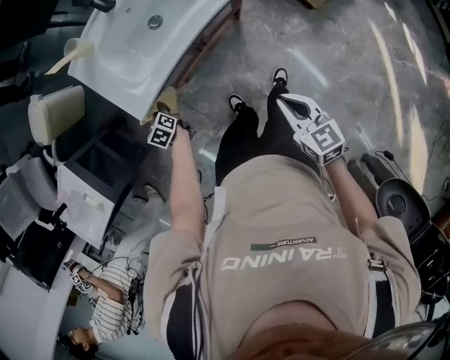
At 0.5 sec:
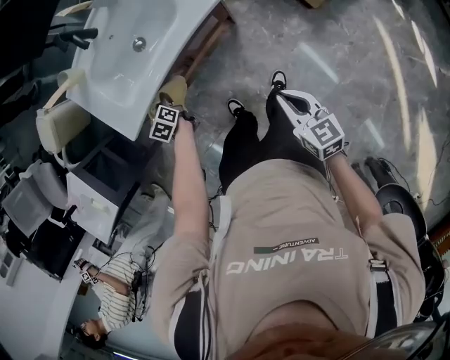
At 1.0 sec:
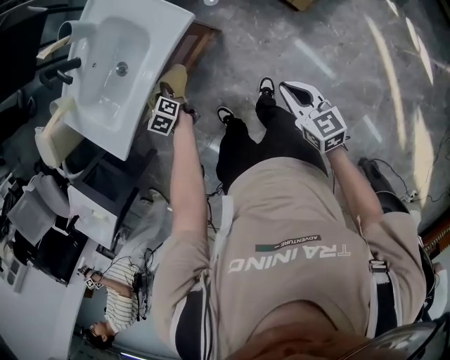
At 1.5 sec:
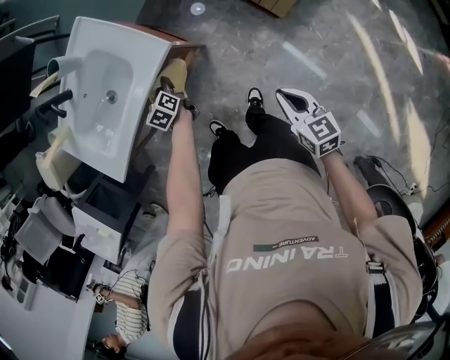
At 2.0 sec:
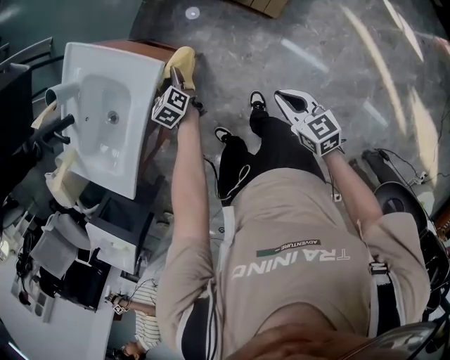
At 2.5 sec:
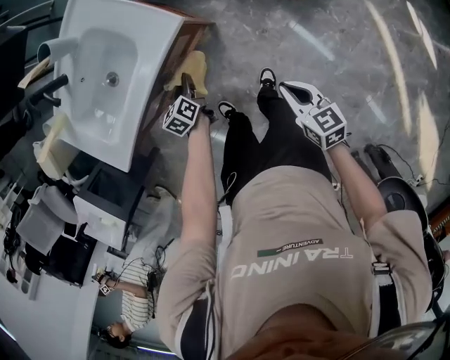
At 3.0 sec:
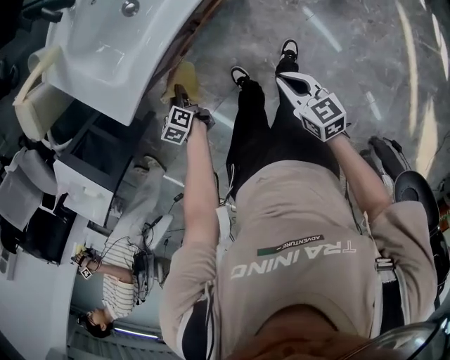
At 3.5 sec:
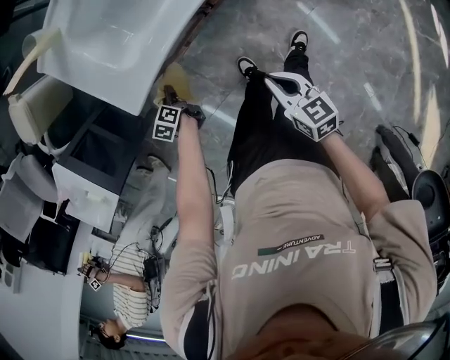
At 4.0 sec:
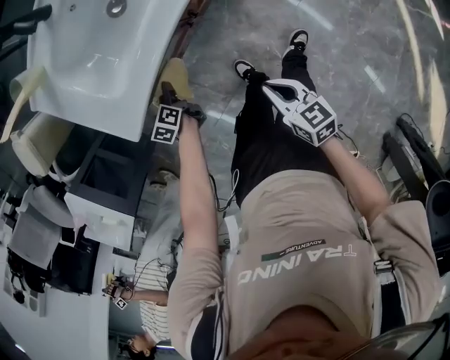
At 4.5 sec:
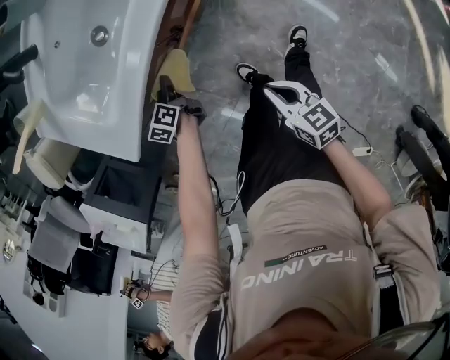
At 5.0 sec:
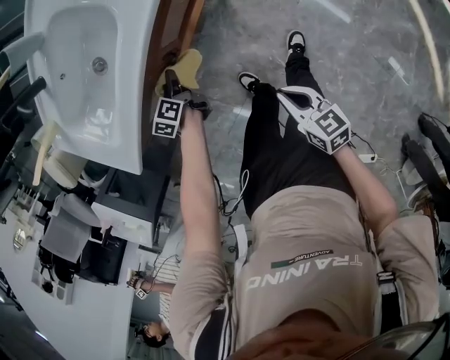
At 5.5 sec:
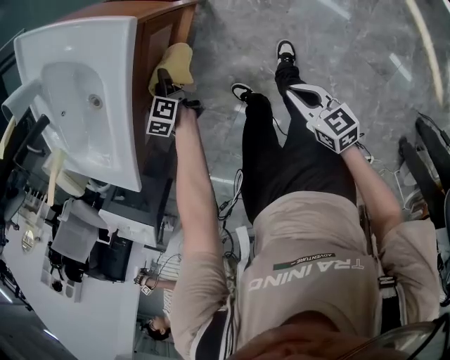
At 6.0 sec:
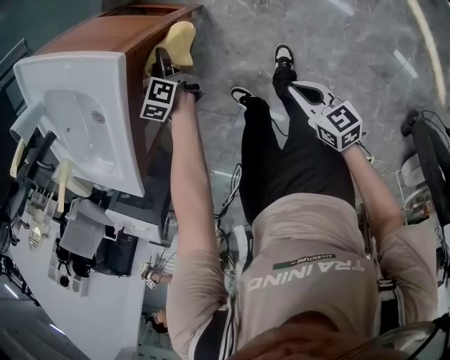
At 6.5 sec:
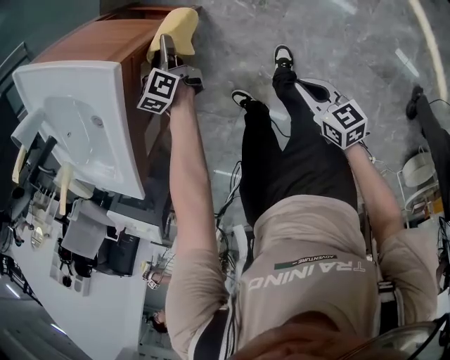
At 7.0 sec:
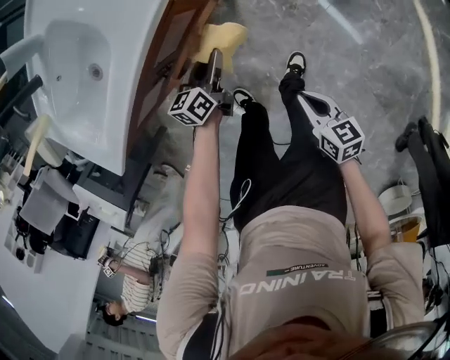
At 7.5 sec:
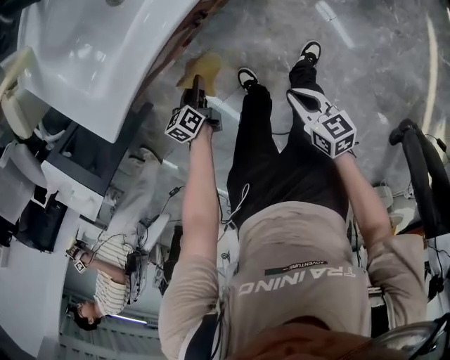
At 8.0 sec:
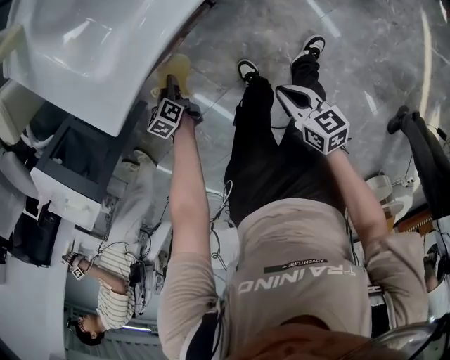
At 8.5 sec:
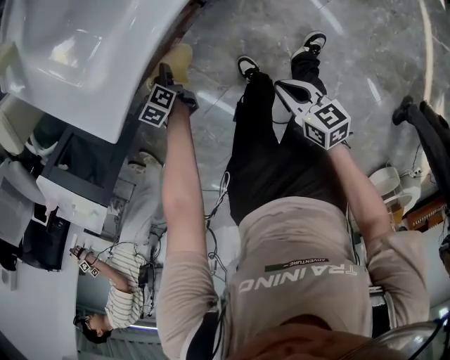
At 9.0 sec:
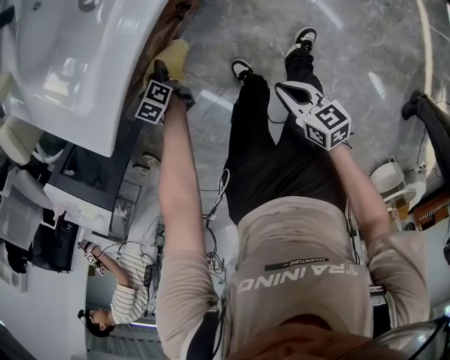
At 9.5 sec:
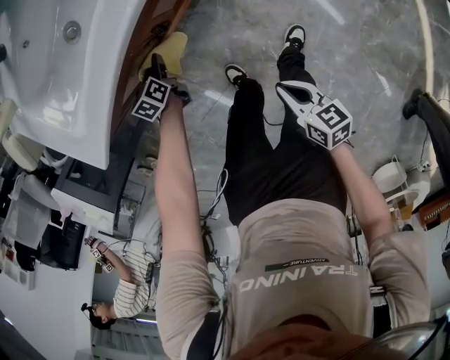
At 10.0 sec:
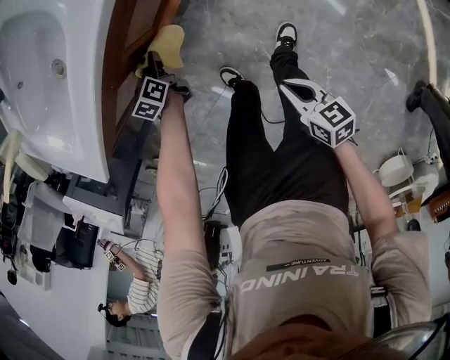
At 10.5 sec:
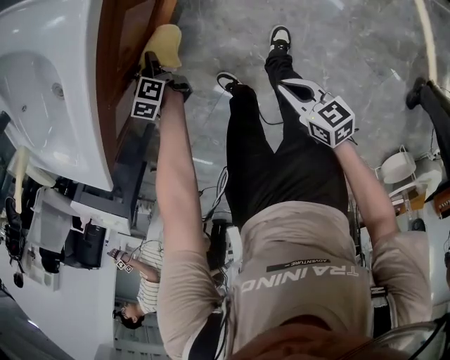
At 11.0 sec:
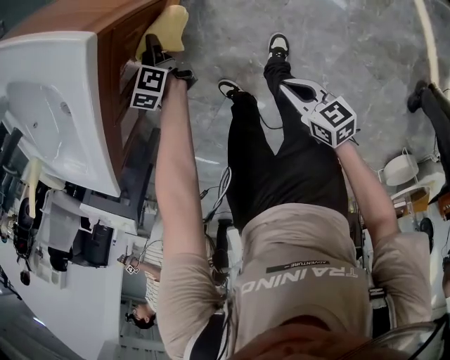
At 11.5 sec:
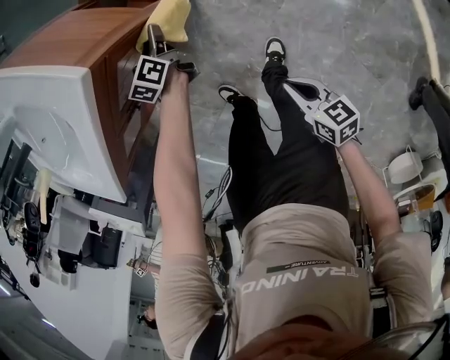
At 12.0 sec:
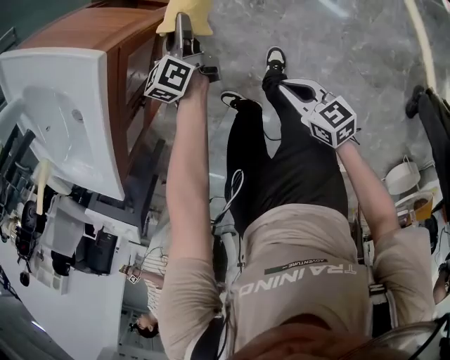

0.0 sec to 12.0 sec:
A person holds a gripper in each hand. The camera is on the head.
0.0 sec to 2.0 sec: The right gripper goes approximately 30 cm to the right; the left gripper goes roughly 50 cm to the right, and rotates roughly 30 degrees.
2.0 sec to 4.0 sec: Both grippers are carried to the left, some 50 cm. The left gripper swivels roughly 20 degrees.
4.0 sec to 6.0 sec: Both grippers move to the right, some 40 cm.
6.0 sec to 8.0 sec: The right gripper ends up roughly 35 cm from where it was. The left gripper shifts by some 50 cm.
8.0 sec to 10.0 sec: Both grippers travel together to the right, roughly 25 cm.
10.0 sec to 12.0 sec: The left gripper shifts some 35 cm to the right, and changes its angle by some 30 degrees; the right gripper shifts about 15 cm to the right.

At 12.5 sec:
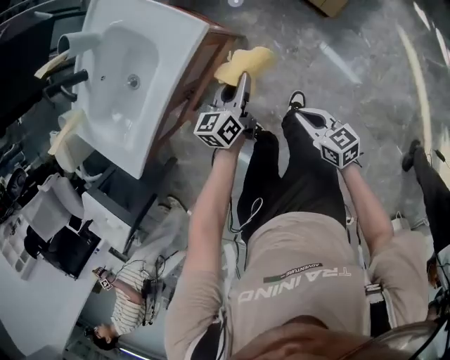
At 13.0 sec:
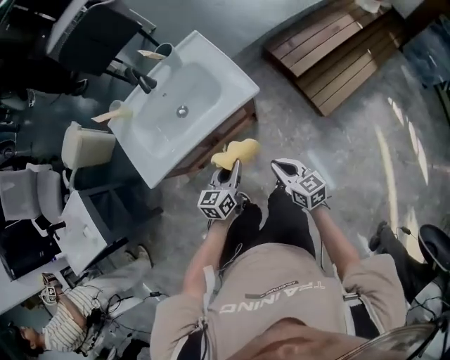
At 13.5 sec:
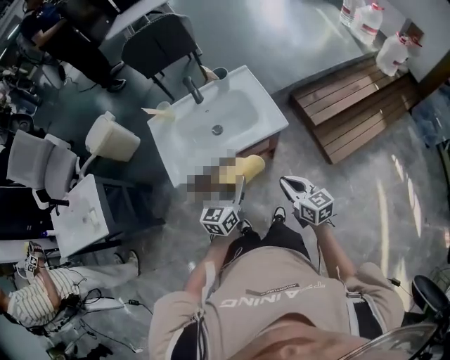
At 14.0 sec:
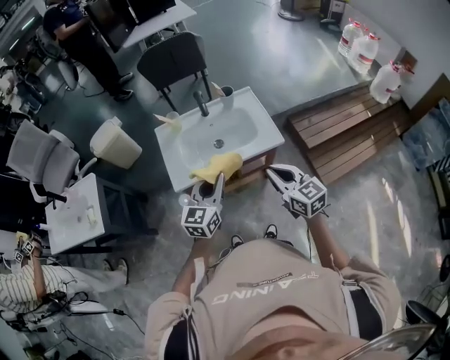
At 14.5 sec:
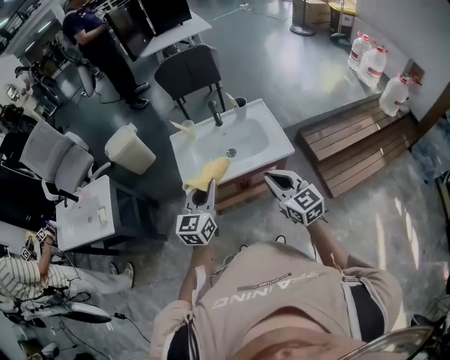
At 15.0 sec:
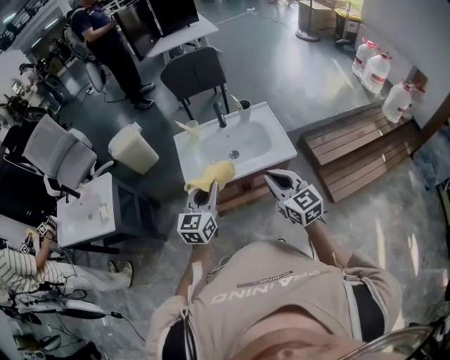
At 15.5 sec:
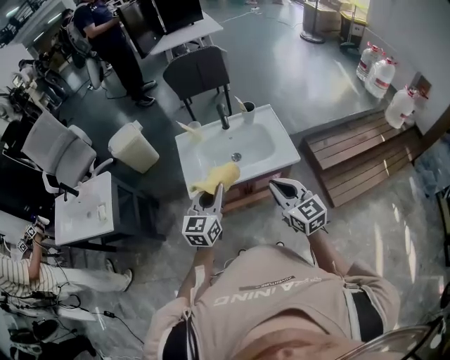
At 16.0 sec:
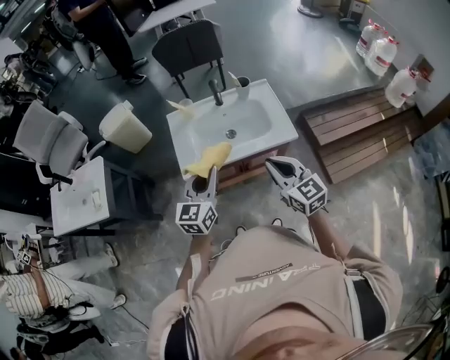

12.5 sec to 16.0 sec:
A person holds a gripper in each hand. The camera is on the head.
12.5 sec to 14.5 sec: Both grippers move upward and to the left, approximately 50 cm. The right gripper rotates around the line of its fingers by approximately 50 degrees, counterclockwise from behind; the left gripper changes its angle by roughly 50 degrees.
14.5 sec to 16.0 sec: There are only small adjustments of the grippers.

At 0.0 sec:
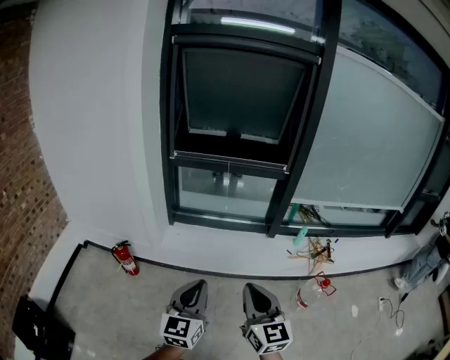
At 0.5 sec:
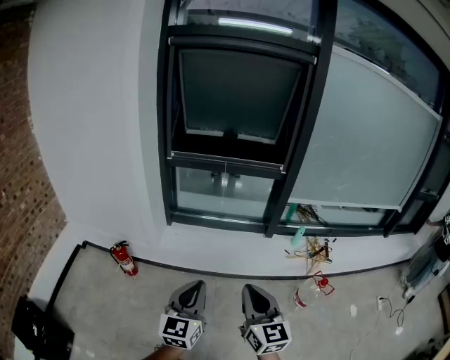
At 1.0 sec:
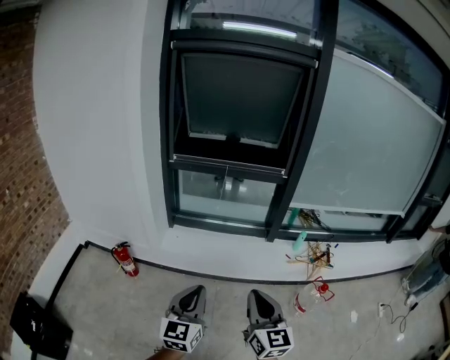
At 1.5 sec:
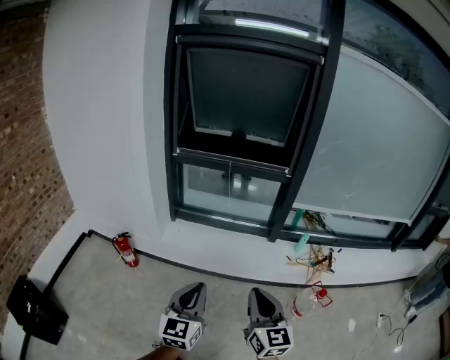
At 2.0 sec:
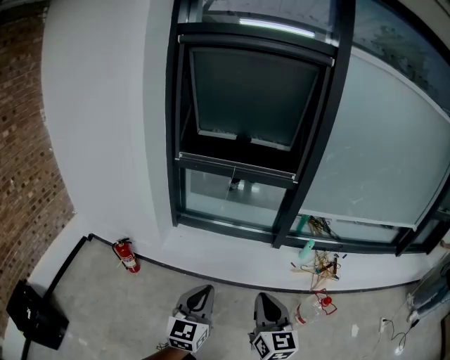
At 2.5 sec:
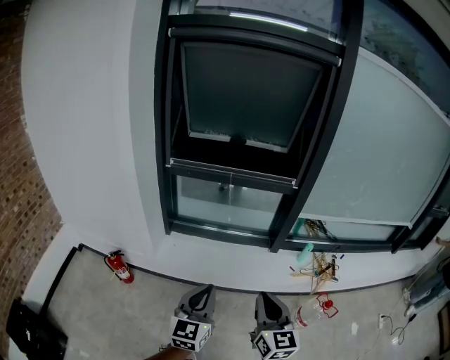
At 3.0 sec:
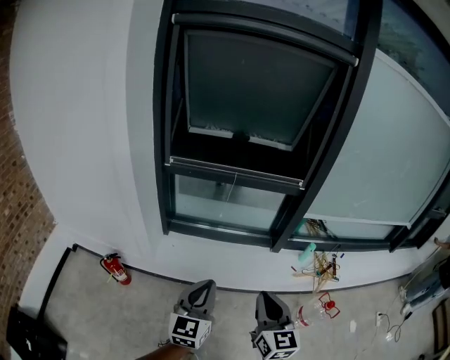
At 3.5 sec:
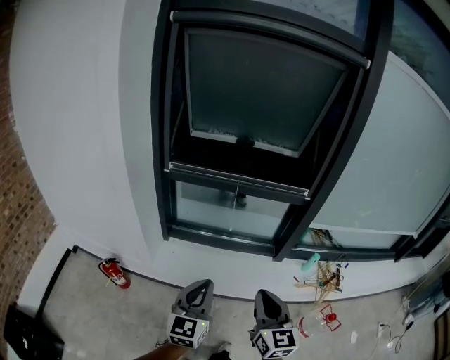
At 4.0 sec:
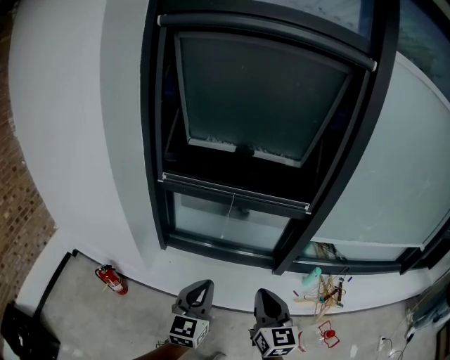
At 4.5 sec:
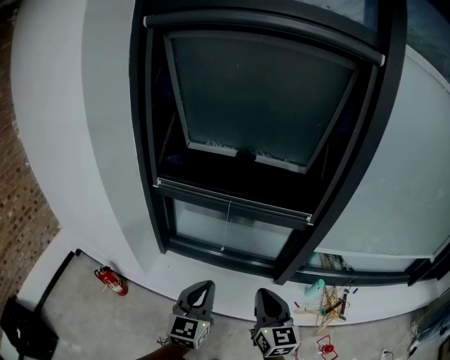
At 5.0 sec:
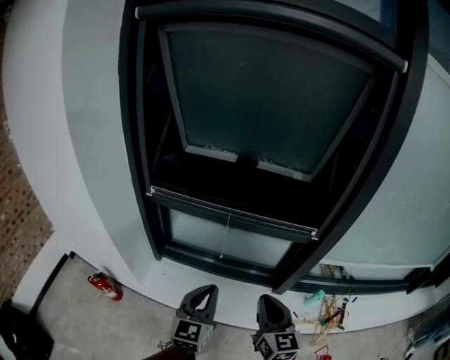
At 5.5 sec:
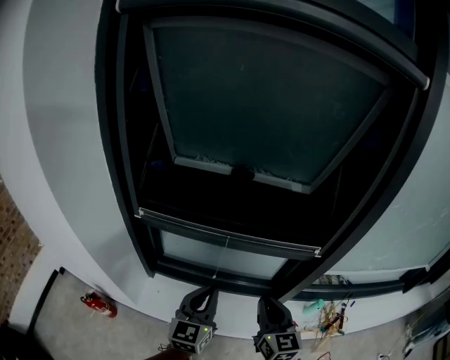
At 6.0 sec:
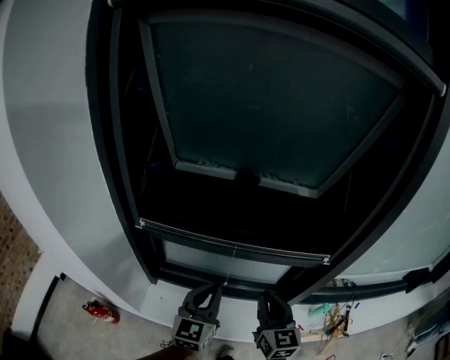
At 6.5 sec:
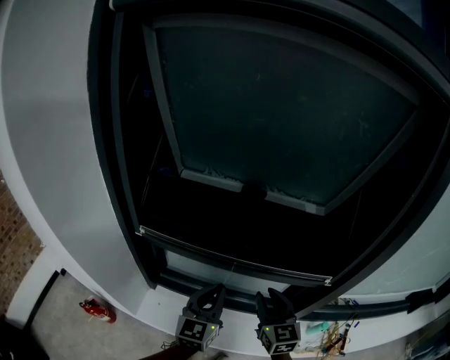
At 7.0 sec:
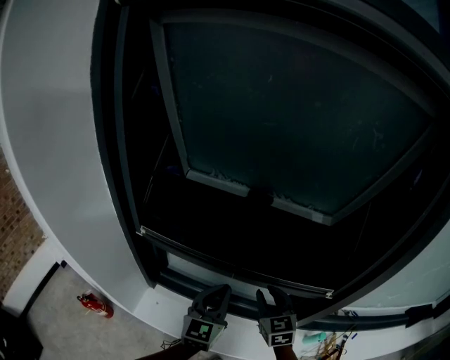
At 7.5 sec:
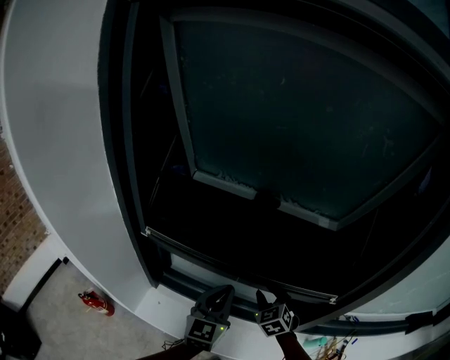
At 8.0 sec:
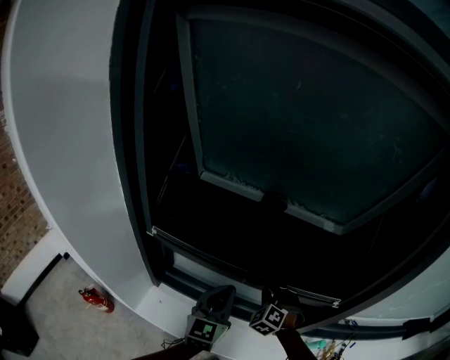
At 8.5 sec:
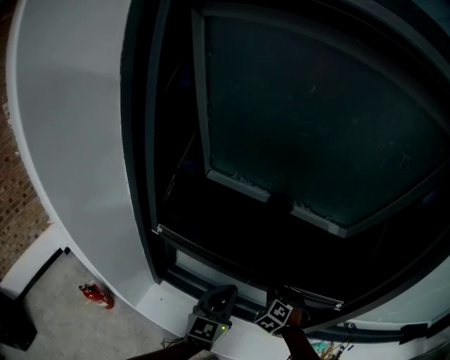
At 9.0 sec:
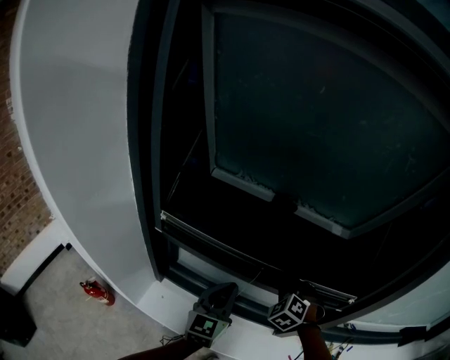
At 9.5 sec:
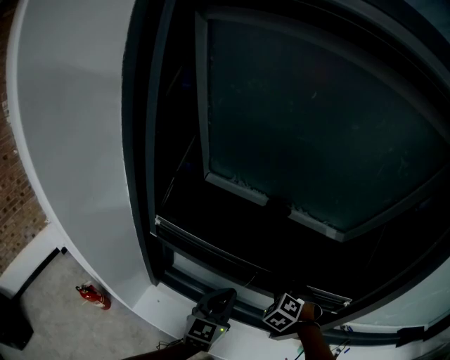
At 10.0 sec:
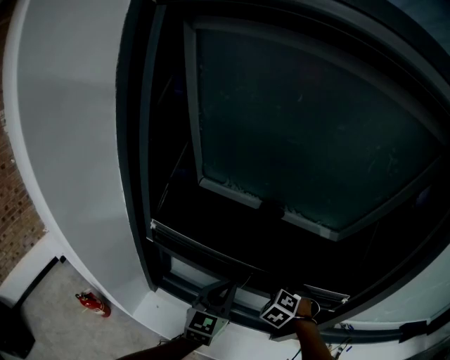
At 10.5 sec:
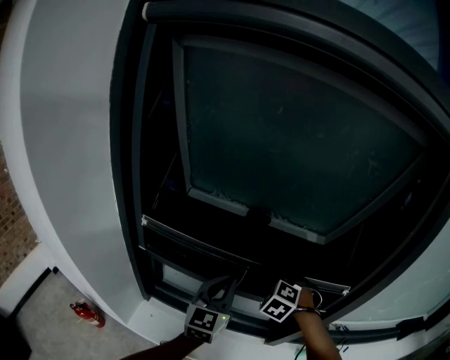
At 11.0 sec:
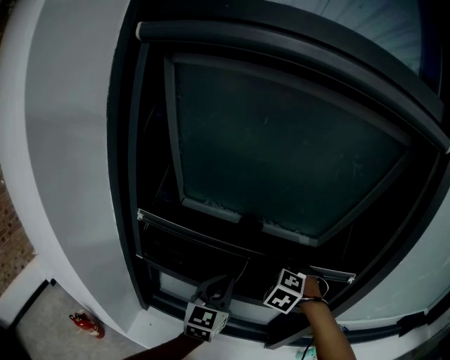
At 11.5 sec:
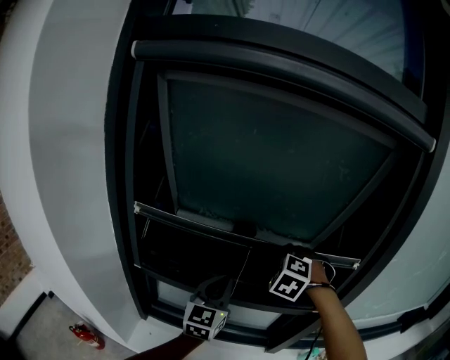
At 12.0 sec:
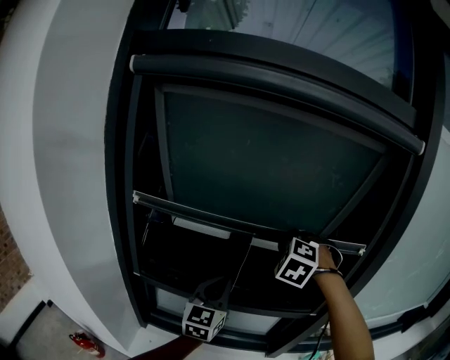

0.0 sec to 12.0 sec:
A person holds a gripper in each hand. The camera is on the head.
0.0 sec to 2.0 sec: The left gripper shifts some 10 cm to the right. The right gripper moves to the right and forward, about 10 cm.
2.0 sec to 4.0 sec: Both grippers travel together forward, about 30 cm.
4.0 sec to 6.0 sec: Both grippers move forward, about 30 cm.
6.0 sec to 8.0 sec: The left gripper shifts roughly 10 cm forward, while the right gripper shifts about 20 cm forward and downward, and rolls counterclockwise, seen from behind, by about 70 degrees.
8.0 sec to 10.0 sec: The right gripper travels upward by approximately 5 cm.
10.0 sec to 12.0 sec: The right gripper is displaced upward by approximately 30 cm, while the left gripper moves upward, about 10 cm.
